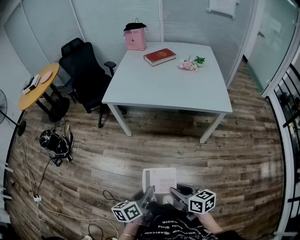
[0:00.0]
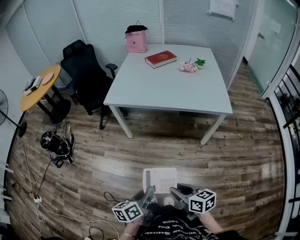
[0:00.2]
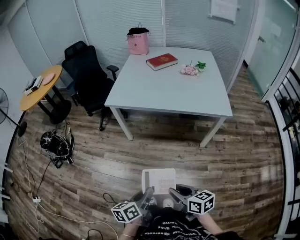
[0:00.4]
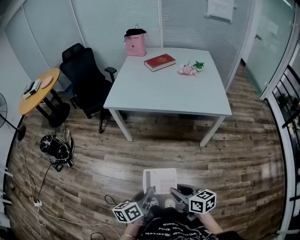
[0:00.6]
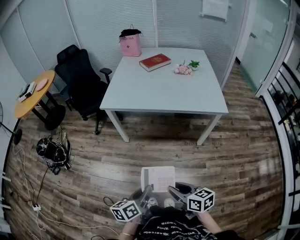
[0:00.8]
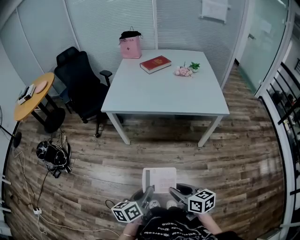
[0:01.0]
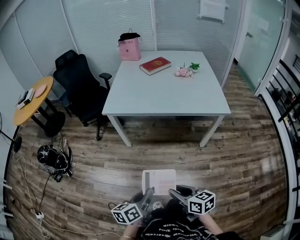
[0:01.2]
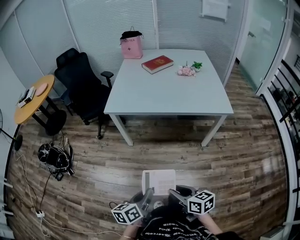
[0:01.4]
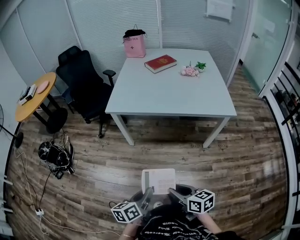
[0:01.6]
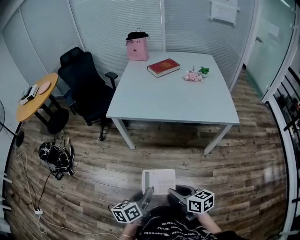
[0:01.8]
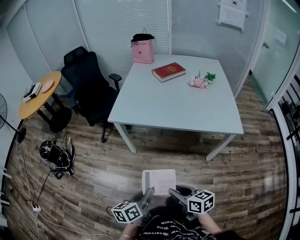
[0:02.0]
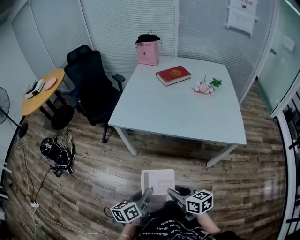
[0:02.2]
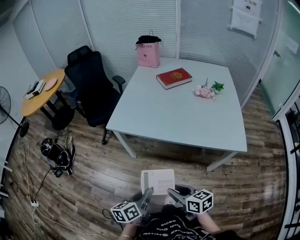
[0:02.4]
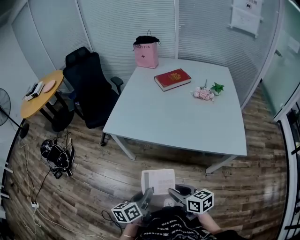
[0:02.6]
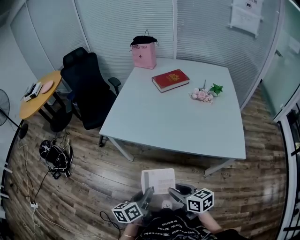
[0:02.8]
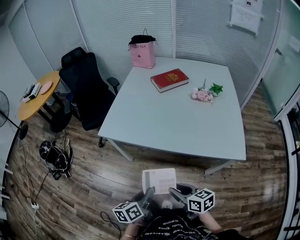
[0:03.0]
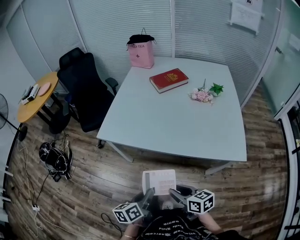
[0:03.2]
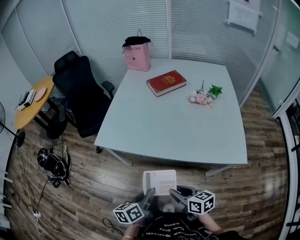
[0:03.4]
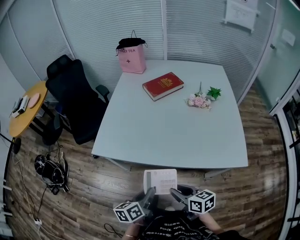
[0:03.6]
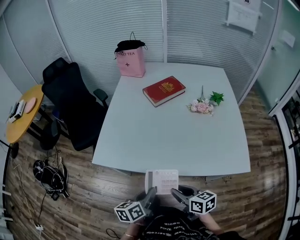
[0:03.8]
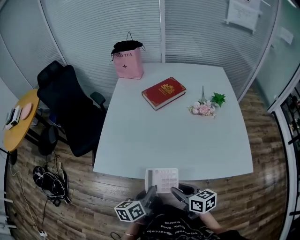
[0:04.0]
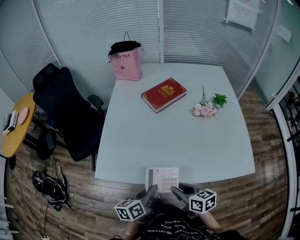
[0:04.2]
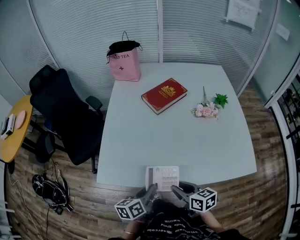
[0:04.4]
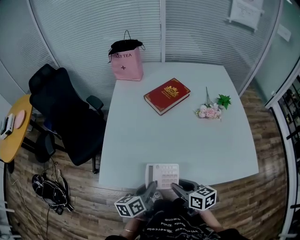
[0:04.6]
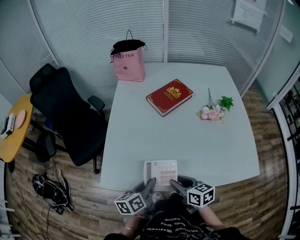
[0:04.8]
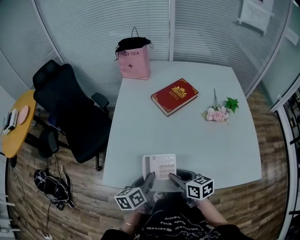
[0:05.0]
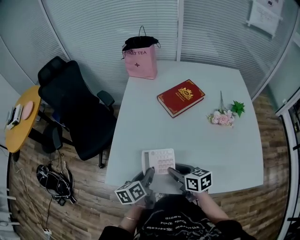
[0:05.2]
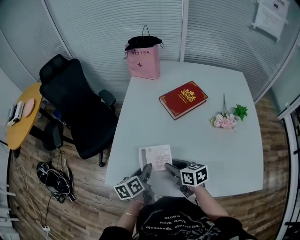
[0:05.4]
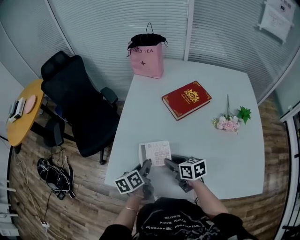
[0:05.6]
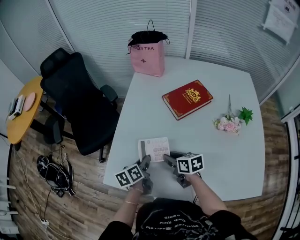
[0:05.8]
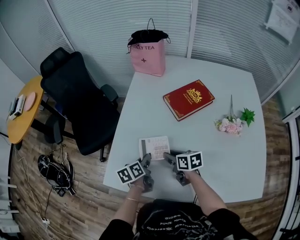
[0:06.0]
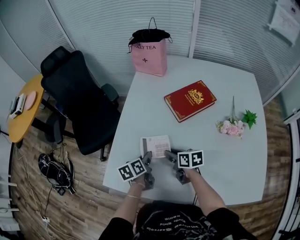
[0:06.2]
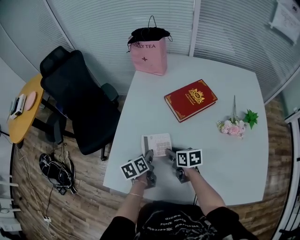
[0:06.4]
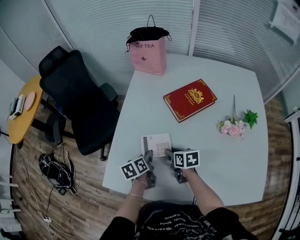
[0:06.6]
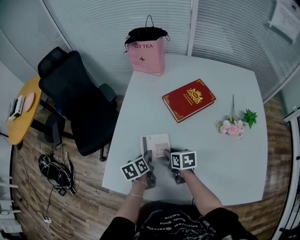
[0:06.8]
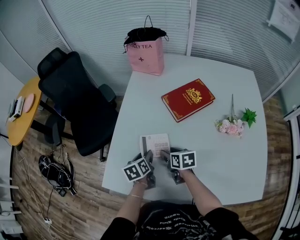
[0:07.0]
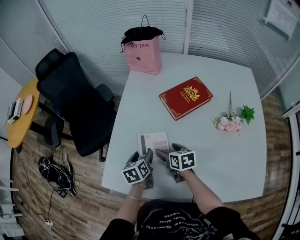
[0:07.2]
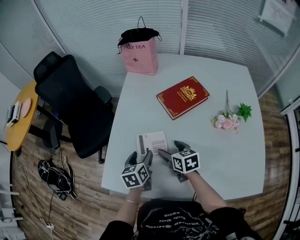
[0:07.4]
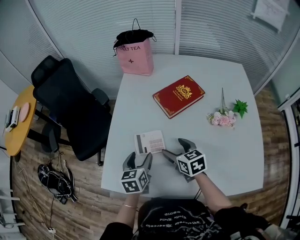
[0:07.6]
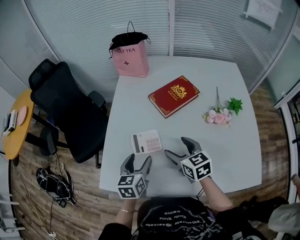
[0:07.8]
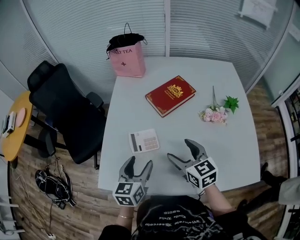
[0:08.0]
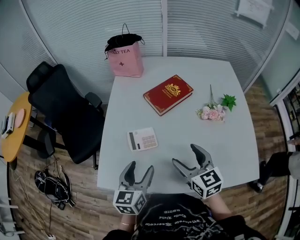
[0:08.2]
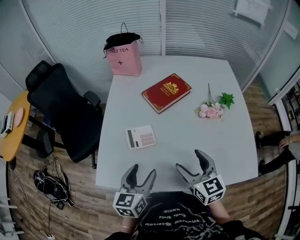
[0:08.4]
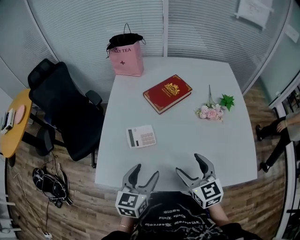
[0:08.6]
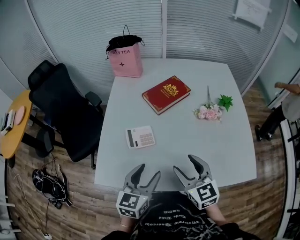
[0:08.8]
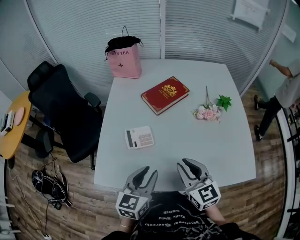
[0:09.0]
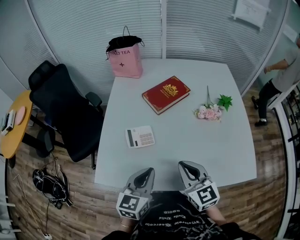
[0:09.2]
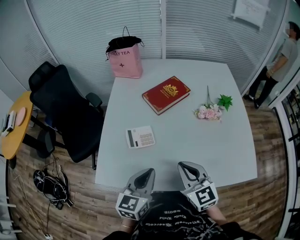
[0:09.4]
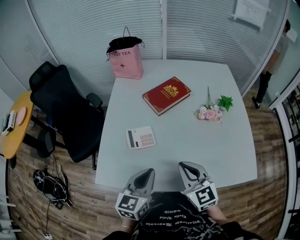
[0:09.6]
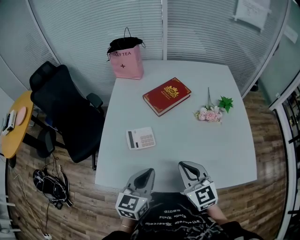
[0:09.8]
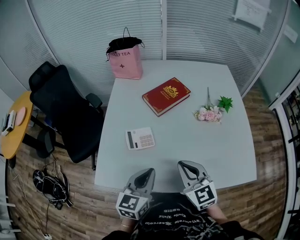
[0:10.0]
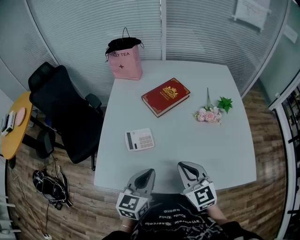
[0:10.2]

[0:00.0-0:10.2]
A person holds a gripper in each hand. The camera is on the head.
0:00.0 to 0:01.4: The grippers both shift to the left by some 5 cm.
0:01.4 to 0:03.0: Both grippers move forward and to the right, about 30 cm.
0:03.0 to 0:04.4: The grippers both shift forward by approximately 30 cm.
0:04.4 to 0:05.8: Both grippers travel together forward, about 25 cm. The left gripper swivels some 20 degrees.
0:05.8 to 0:07.2: The left gripper changes place by approximately 5 cm, and opens its fingers. Meanwhile the right gripper goes some 5 cm forward, and opens.
0:07.2 to 0:08.8: Both grippers move backward, upward and to the right, some 25 cm. The right gripper swivels roughly 40 degrees; the left gripper rotates roughly 40 degrees.
0:08.8 to 0:10.2: The right gripper closes; the left gripper closes.

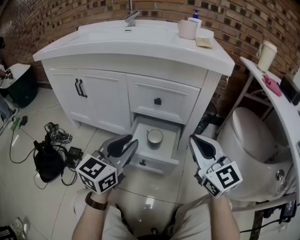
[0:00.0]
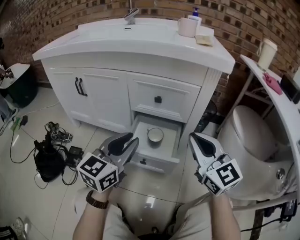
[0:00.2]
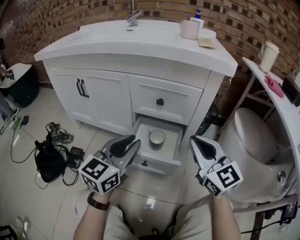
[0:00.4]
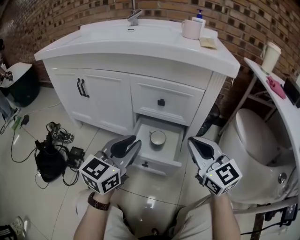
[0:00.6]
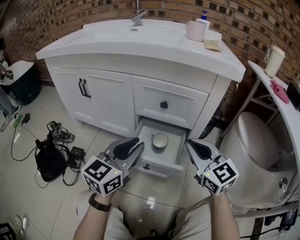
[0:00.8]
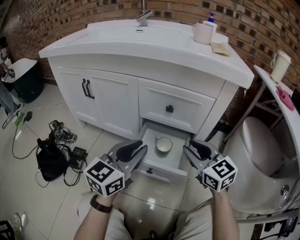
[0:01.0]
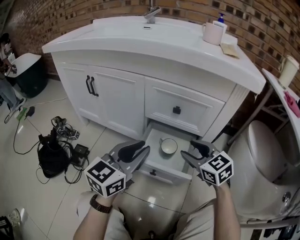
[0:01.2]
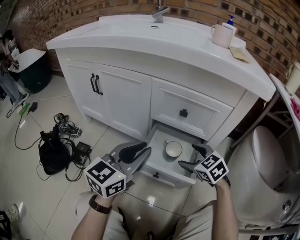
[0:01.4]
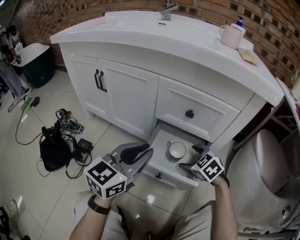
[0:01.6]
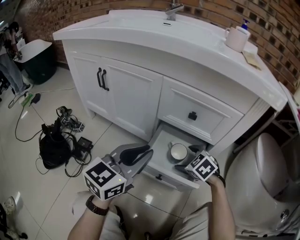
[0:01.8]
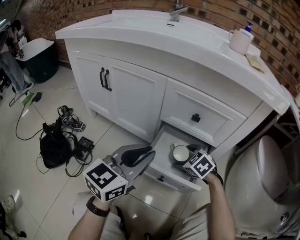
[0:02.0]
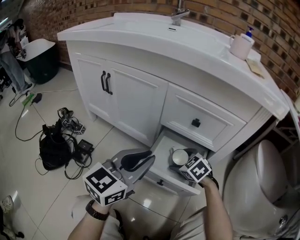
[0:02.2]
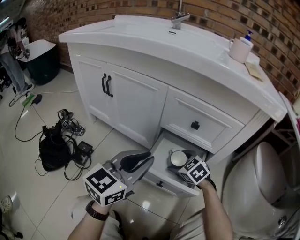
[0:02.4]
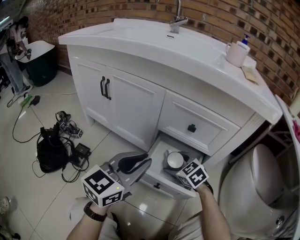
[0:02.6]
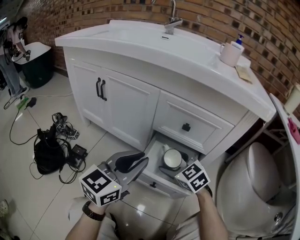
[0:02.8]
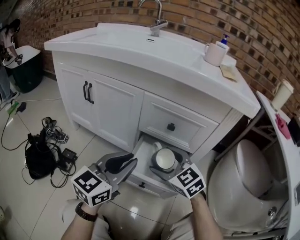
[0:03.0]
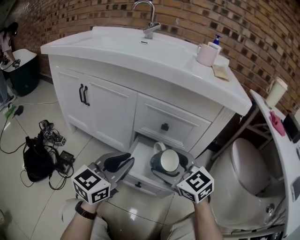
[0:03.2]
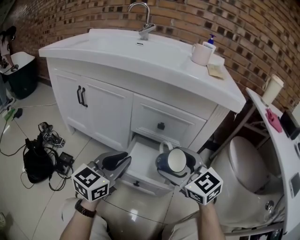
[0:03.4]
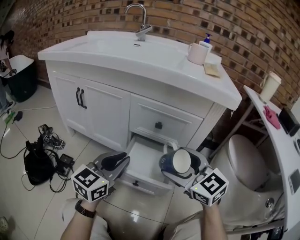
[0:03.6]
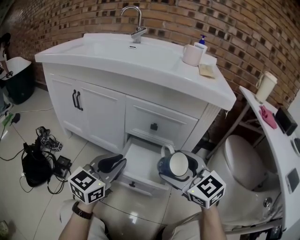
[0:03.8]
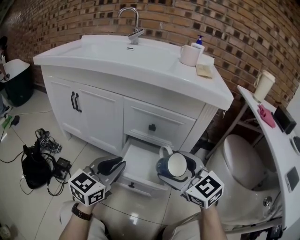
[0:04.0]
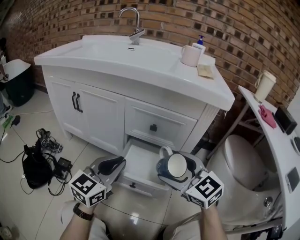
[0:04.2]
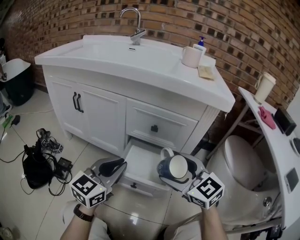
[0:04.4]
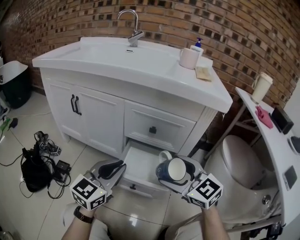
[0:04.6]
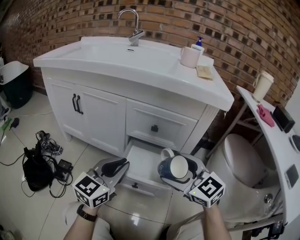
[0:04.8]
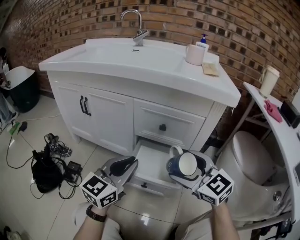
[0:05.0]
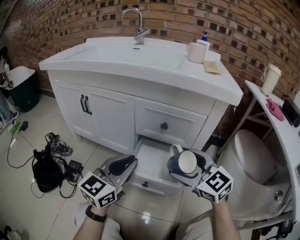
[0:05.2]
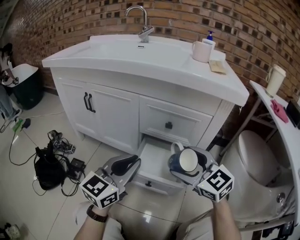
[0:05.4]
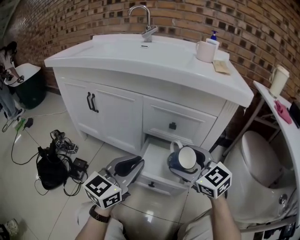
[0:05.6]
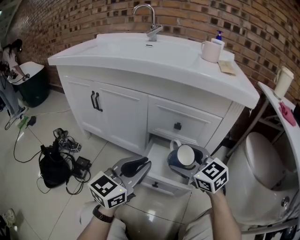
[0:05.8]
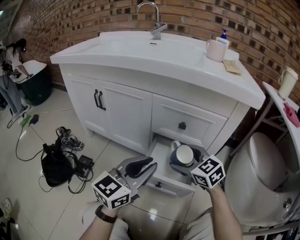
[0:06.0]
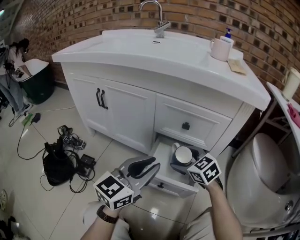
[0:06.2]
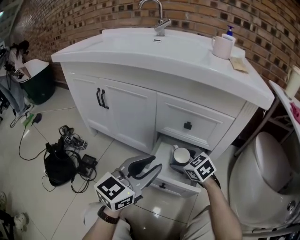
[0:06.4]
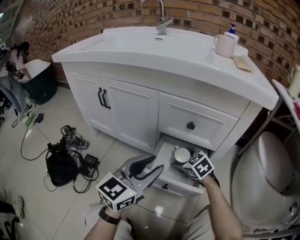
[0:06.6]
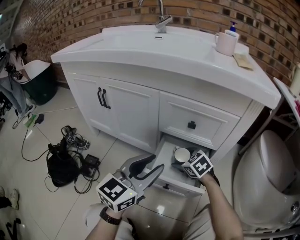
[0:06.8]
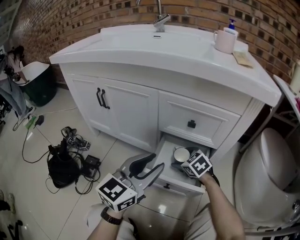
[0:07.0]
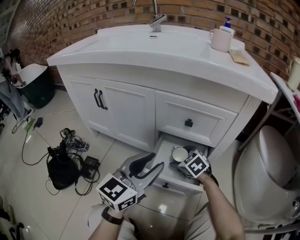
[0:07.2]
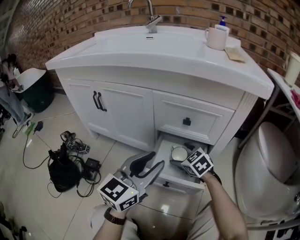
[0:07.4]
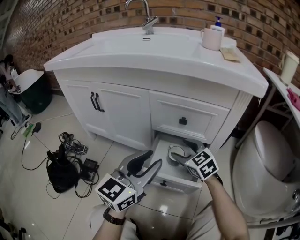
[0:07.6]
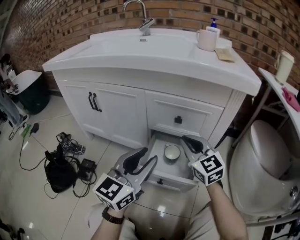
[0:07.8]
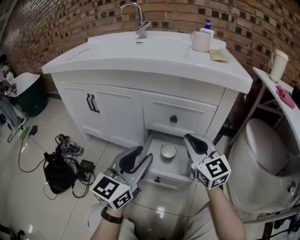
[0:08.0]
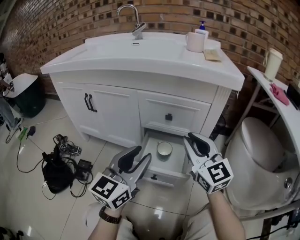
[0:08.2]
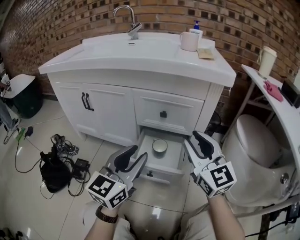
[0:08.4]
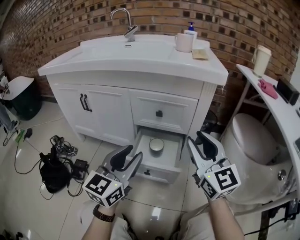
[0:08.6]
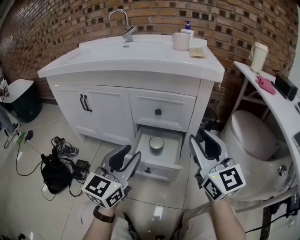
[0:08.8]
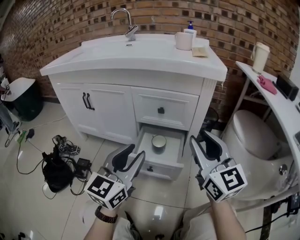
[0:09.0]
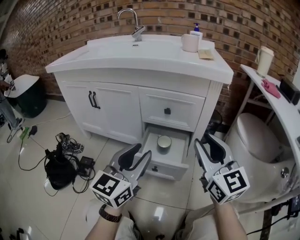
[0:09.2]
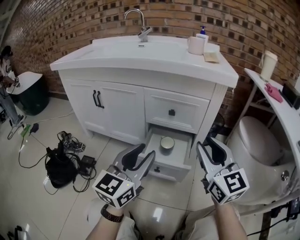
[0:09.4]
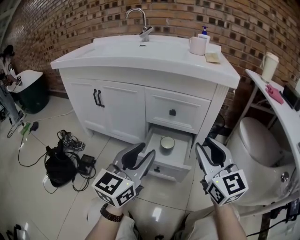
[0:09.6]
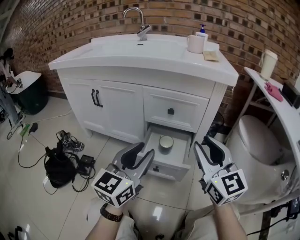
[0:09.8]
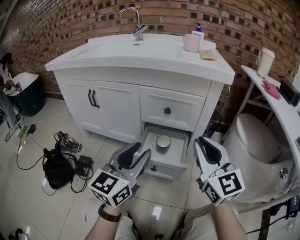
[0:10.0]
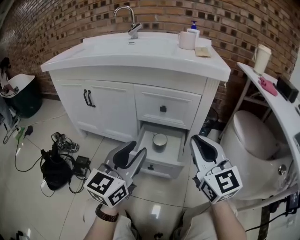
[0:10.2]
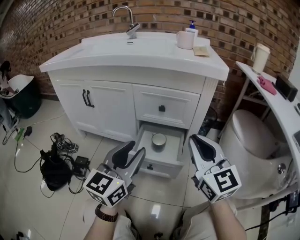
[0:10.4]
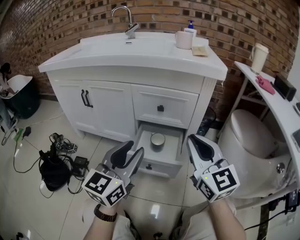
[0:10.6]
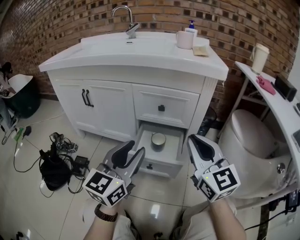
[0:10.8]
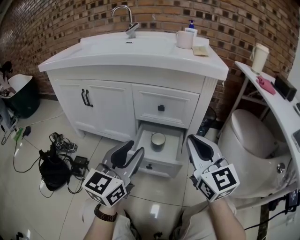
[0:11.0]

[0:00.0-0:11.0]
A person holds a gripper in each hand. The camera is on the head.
0:00.0 to 0:01.6: The right gripper is displaced downward and forward by roughly 25 cm, tilts its fingers about 50 degrees downward, and opens up, while the left gripper shifts by approximately 5 cm.
0:01.6 to 0:03.2: The right gripper goes approximately 15 cm upward, and angles its fingers upward, by about 30 degrees.
0:03.2 to 0:04.8: The right gripper ends up roughly 10 cm from where it was.
0:04.8 to 0:06.2: The right gripper heads downward and forward, covering approximately 15 cm.
0:06.2 to 0:07.8: The right gripper moves upward, some 10 cm, changes its angle by some 30 degrees, and closes.
0:07.8 to 0:09.4: The right gripper moves backward, upward and to the right, some 20 cm. Meanwhile the left gripper is displaced backward by some 5 cm.
0:09.4 to 0:11.0: Neither gripper changes place.

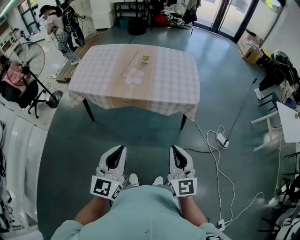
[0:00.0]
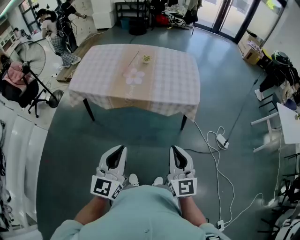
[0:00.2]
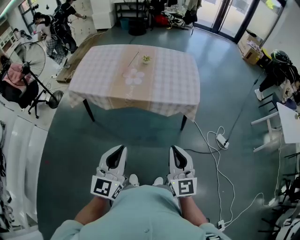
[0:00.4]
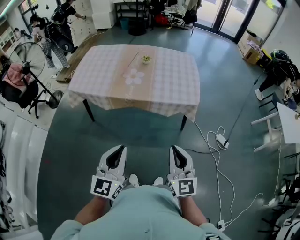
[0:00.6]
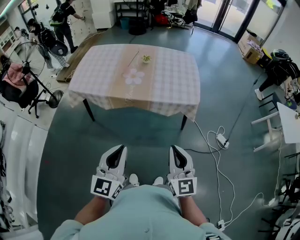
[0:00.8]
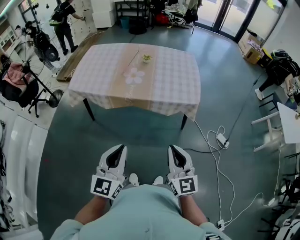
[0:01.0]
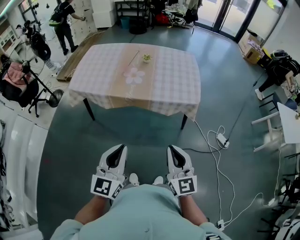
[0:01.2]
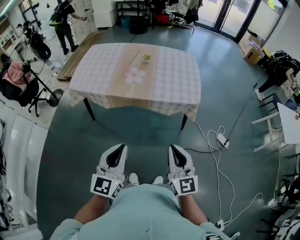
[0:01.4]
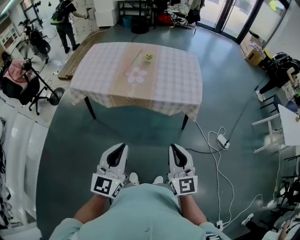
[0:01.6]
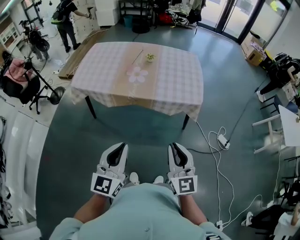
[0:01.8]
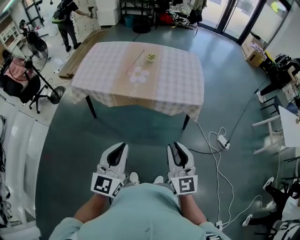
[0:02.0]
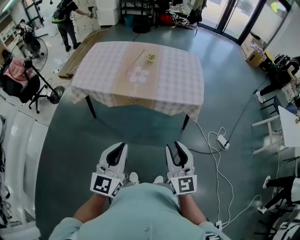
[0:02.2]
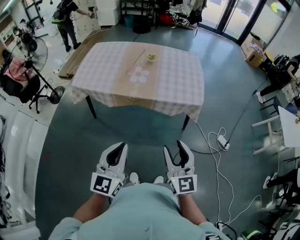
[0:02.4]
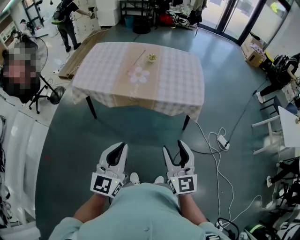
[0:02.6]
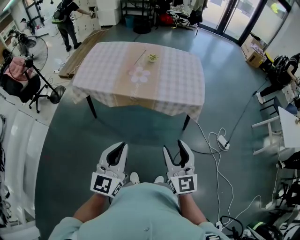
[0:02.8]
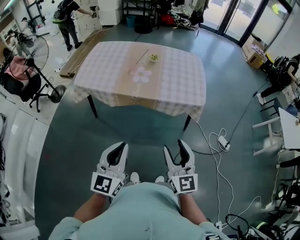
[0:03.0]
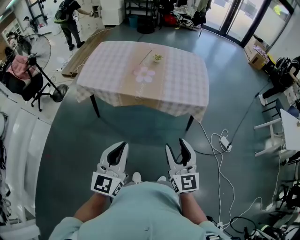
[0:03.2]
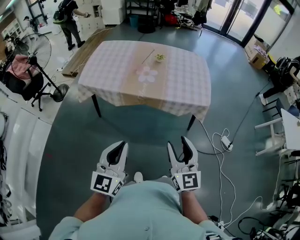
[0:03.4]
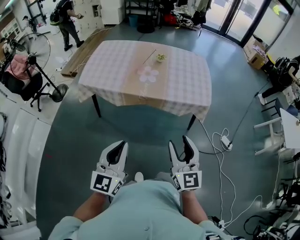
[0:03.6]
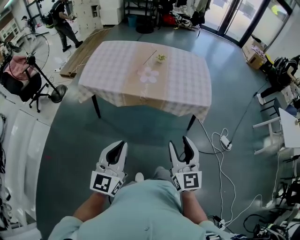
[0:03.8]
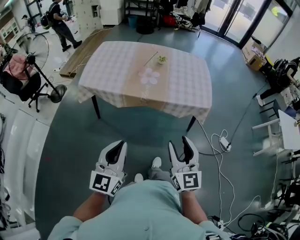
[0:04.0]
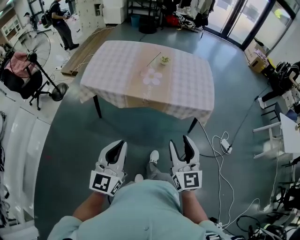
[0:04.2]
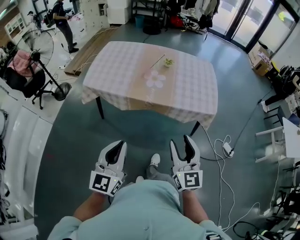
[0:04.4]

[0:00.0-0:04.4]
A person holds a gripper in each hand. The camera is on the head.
0:00.0 to 0:01.4: The grippers make only small movements.
0:01.4 to 0:03.0: The right gripper opens its fingers.
0:03.0 to 0:04.4: The right gripper goes roughly 10 cm to the left and forward, while the left gripper is displaced to the left by some 10 cm.
